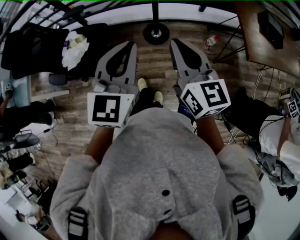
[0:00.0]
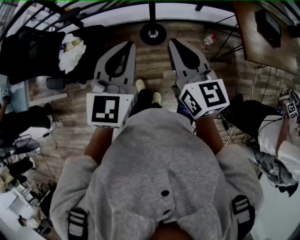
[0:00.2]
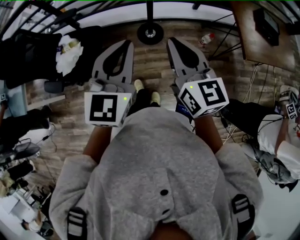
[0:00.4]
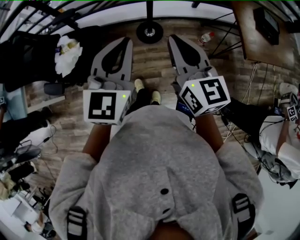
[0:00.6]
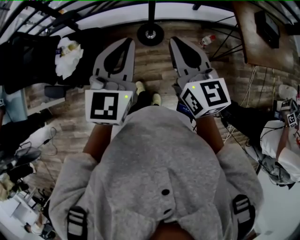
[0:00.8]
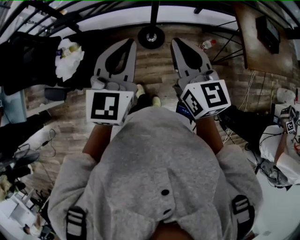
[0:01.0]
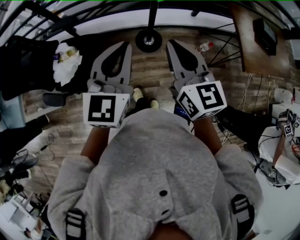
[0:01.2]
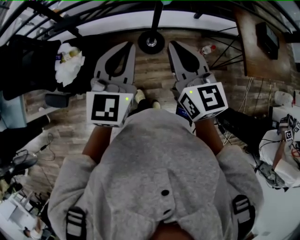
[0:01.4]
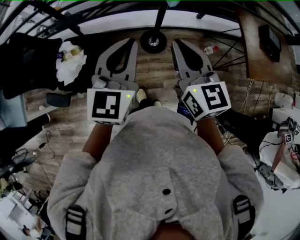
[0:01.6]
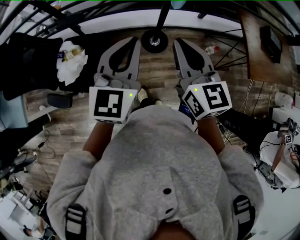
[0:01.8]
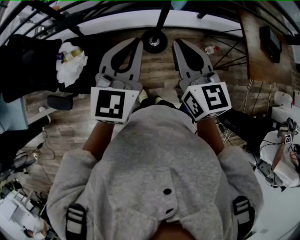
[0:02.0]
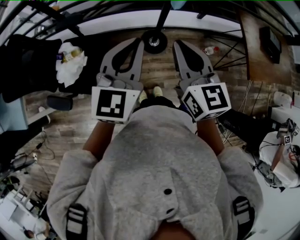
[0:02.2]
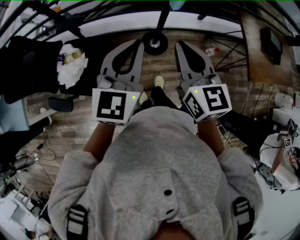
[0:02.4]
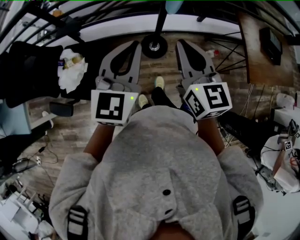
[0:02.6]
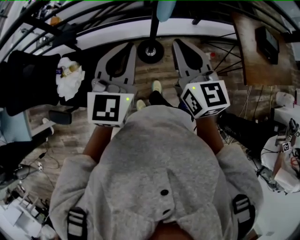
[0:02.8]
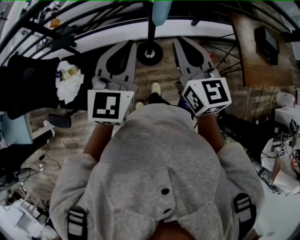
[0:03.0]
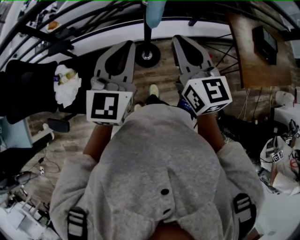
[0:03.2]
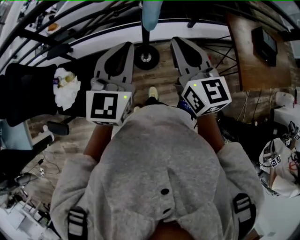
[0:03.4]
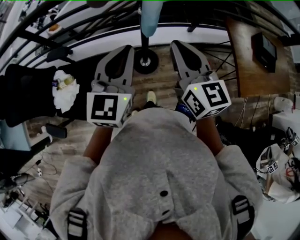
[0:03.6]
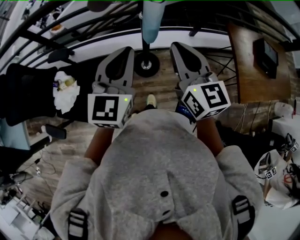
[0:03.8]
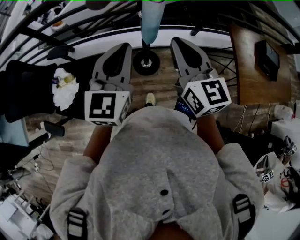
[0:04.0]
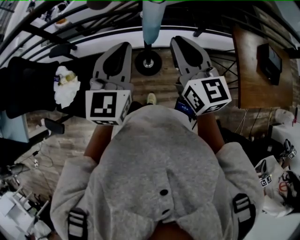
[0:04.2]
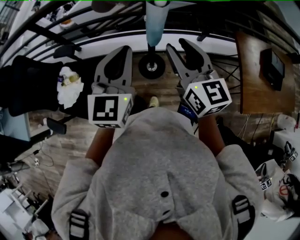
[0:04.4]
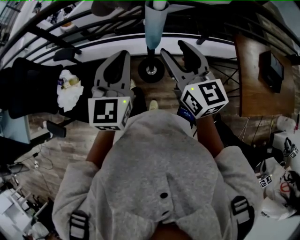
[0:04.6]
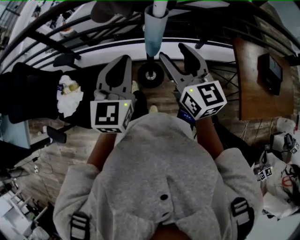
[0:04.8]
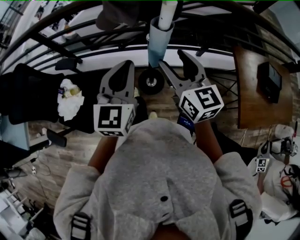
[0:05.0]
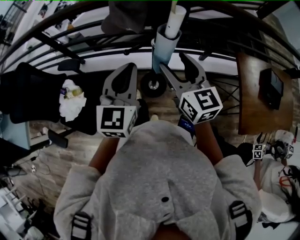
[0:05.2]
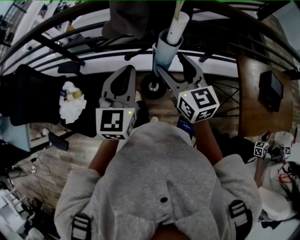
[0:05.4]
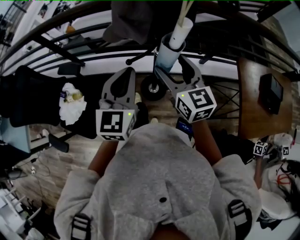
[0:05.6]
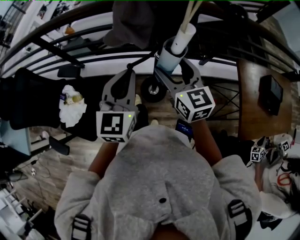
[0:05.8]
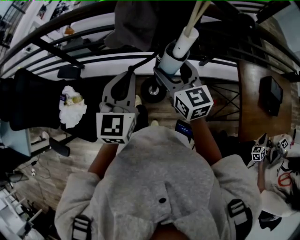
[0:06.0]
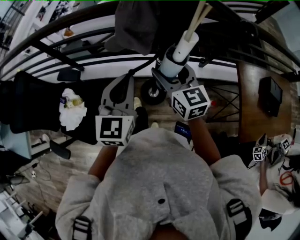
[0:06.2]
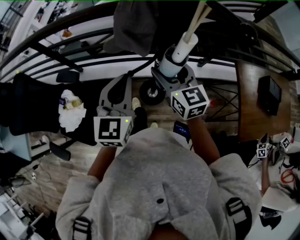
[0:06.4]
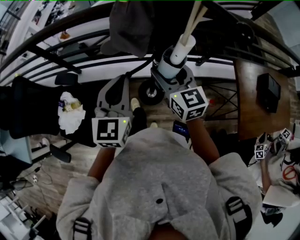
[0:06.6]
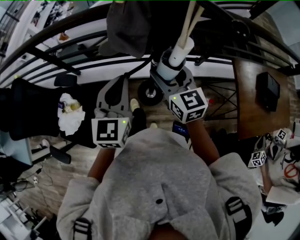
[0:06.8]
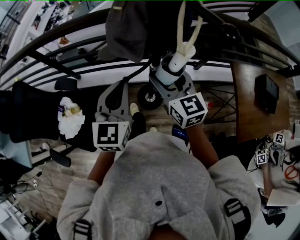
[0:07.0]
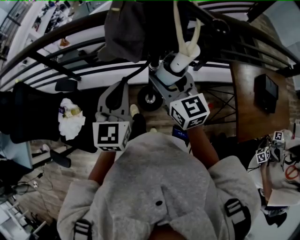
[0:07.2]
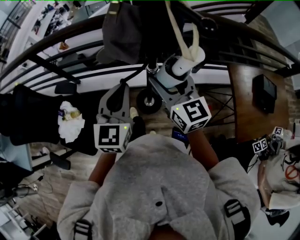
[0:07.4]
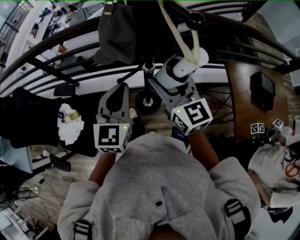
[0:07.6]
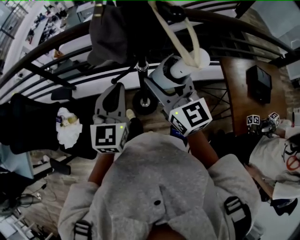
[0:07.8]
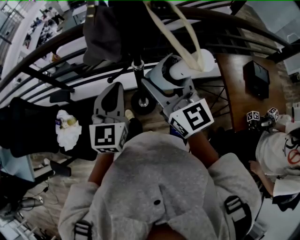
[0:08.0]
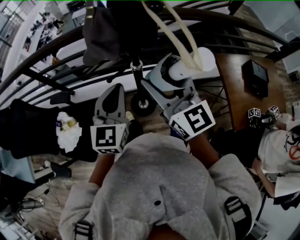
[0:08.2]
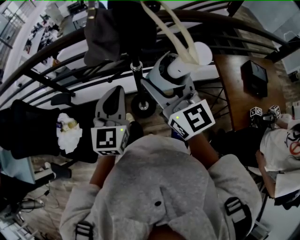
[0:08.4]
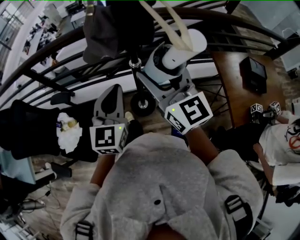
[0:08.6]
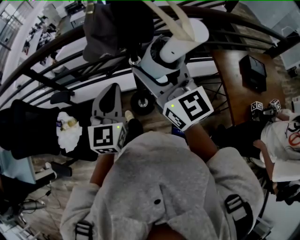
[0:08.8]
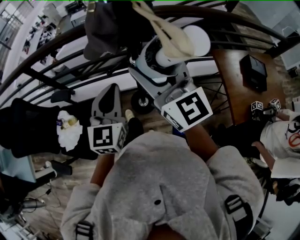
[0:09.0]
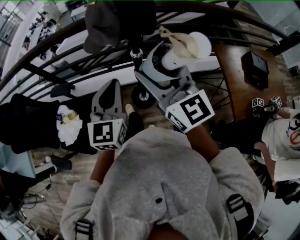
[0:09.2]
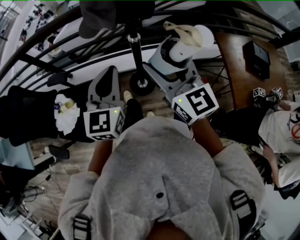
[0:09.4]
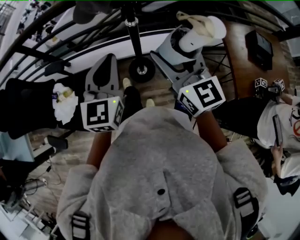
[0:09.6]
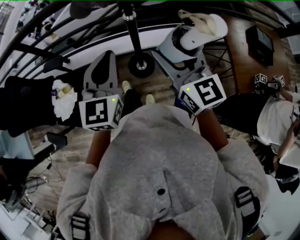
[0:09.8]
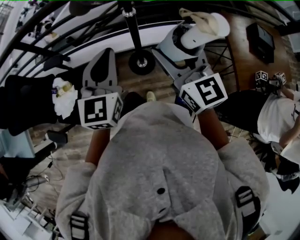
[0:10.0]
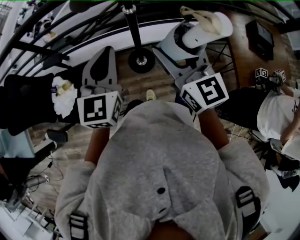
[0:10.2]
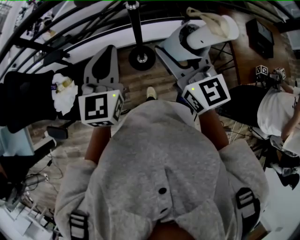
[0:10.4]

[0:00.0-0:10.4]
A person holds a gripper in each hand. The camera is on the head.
0:00.0 to 0:01.4: Both grippers travel together forward and to the left, roughly 20 cm.
0:01.4 to 0:03.0: The left gripper heads forward, covering roughly 10 cm. Meanwhile the right gripper travels forward and to the right by some 15 cm.
0:03.0 to 0:04.4: The right gripper is displaced forward and to the right by some 10 cm, and opens, while the left gripper travels forward by approximately 10 cm.
0:04.4 to 0:06.0: Both grippers move forward, some 15 cm. The right gripper opens its fingers.
0:06.0 to 0:07.4: The right gripper changes place by roughly 5 cm.
0:07.4 to 0:09.0: The right gripper heads upward and backward, covering approximately 15 cm. Meanwhile the left gripper goes about 5 cm backward.
0:09.0 to 0:10.4: The left gripper shifts approximately 5 cm backward, while the right gripper goes some 15 cm downward and backward.

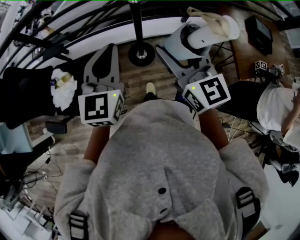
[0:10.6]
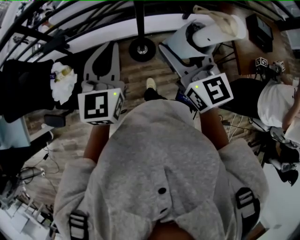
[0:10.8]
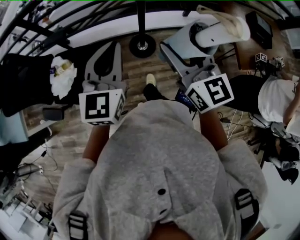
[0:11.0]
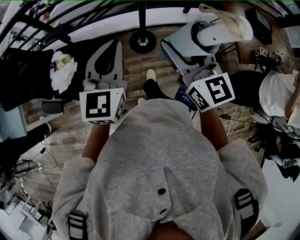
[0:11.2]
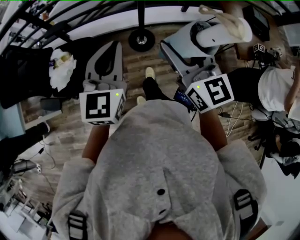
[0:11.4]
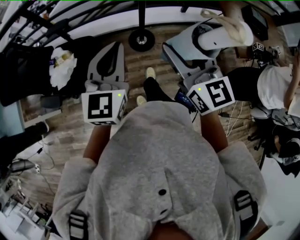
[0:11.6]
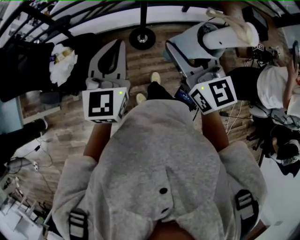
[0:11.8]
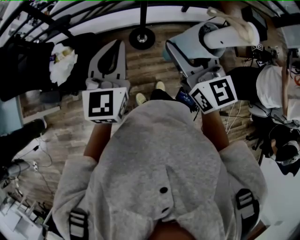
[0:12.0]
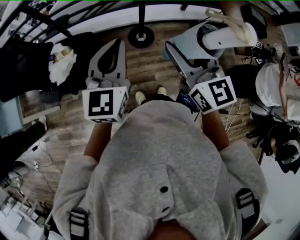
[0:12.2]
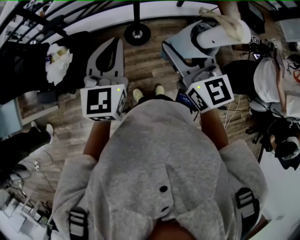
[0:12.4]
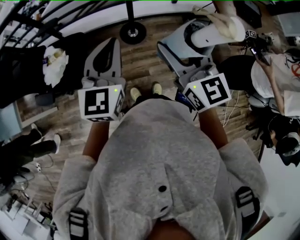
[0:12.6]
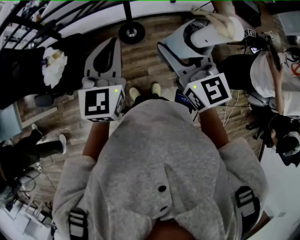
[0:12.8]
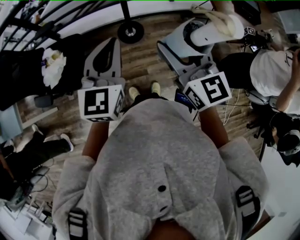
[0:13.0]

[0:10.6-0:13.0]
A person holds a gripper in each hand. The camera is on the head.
0:10.6 to 0:11.8: The two grippers go some 20 cm backward.
0:11.8 to 0:13.0: The grippers both shift to the right by approximately 10 cm.

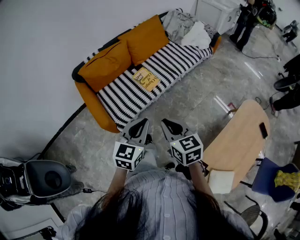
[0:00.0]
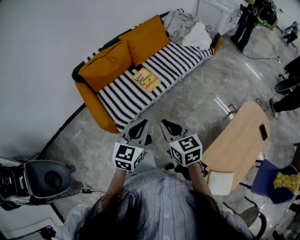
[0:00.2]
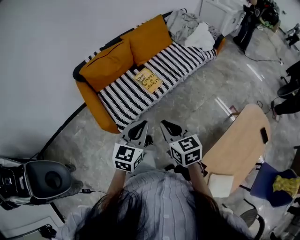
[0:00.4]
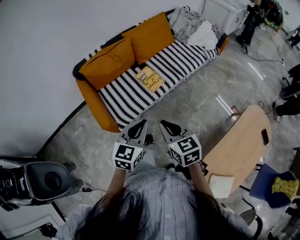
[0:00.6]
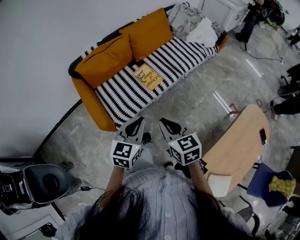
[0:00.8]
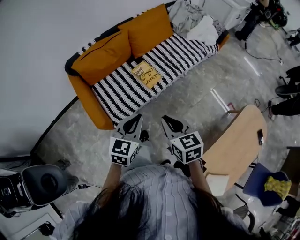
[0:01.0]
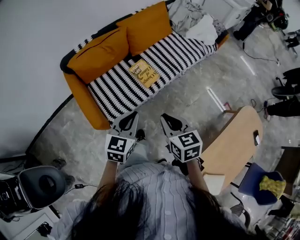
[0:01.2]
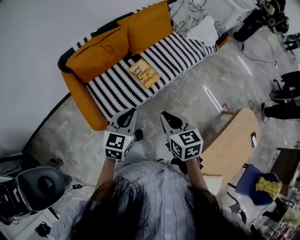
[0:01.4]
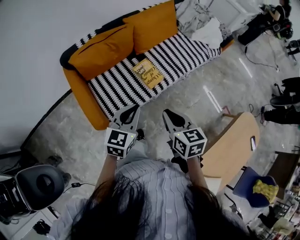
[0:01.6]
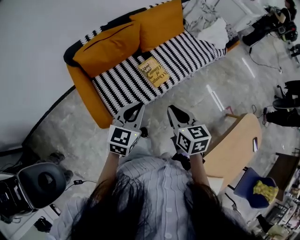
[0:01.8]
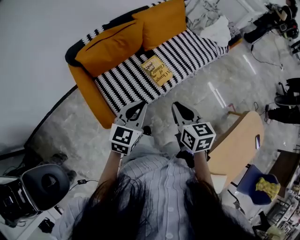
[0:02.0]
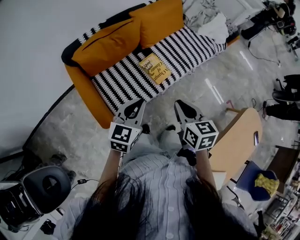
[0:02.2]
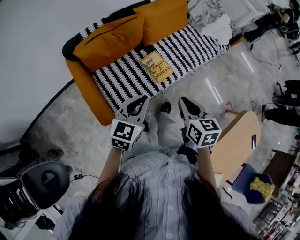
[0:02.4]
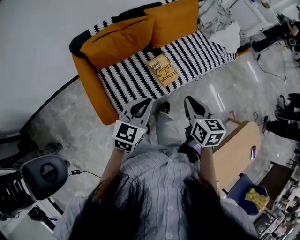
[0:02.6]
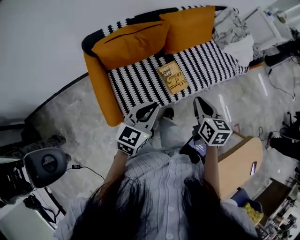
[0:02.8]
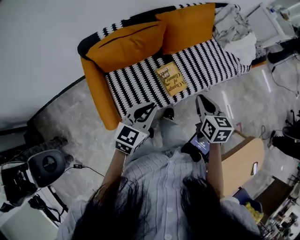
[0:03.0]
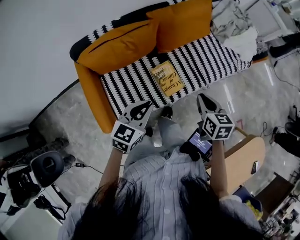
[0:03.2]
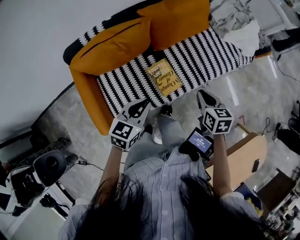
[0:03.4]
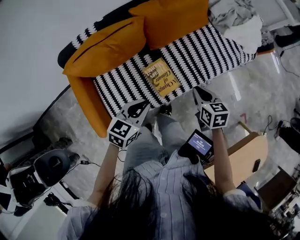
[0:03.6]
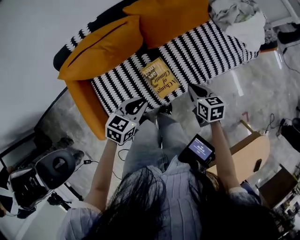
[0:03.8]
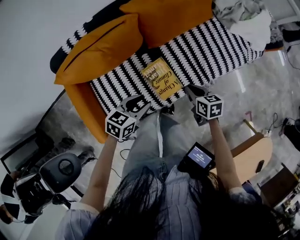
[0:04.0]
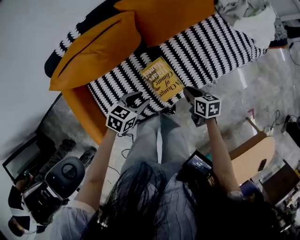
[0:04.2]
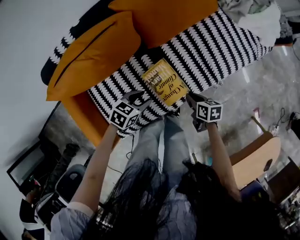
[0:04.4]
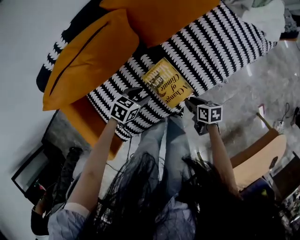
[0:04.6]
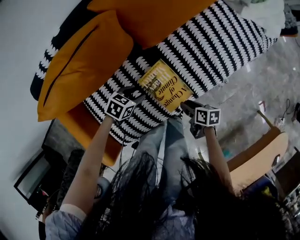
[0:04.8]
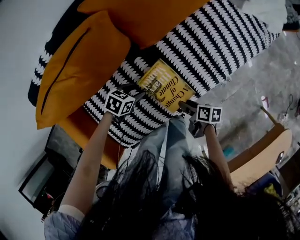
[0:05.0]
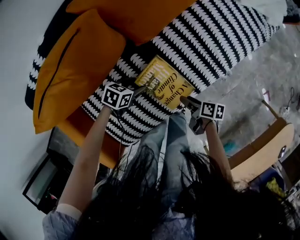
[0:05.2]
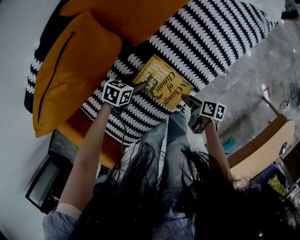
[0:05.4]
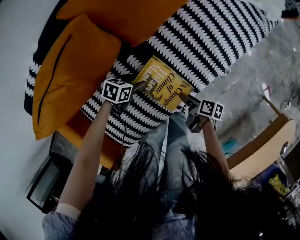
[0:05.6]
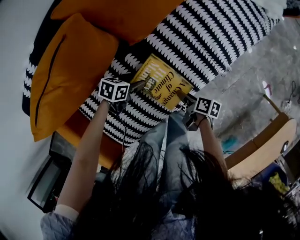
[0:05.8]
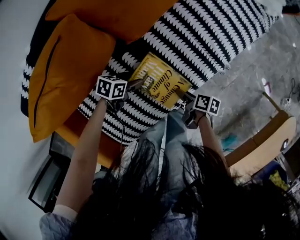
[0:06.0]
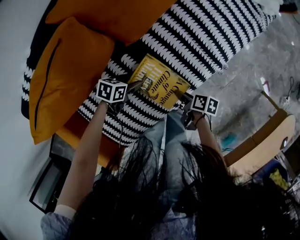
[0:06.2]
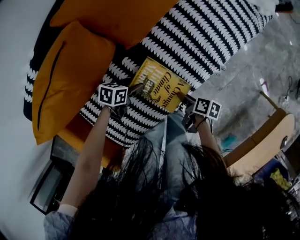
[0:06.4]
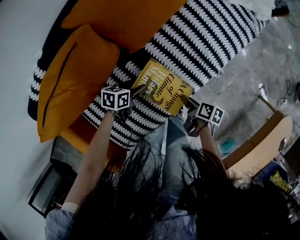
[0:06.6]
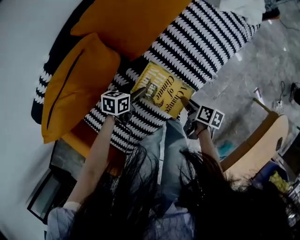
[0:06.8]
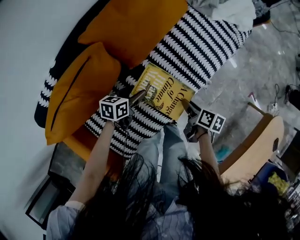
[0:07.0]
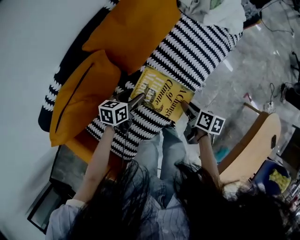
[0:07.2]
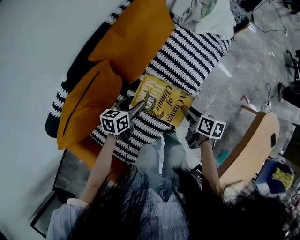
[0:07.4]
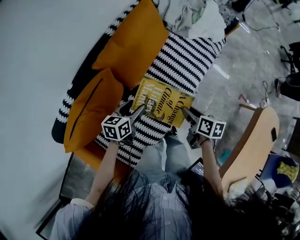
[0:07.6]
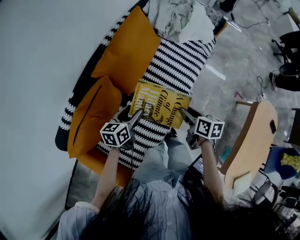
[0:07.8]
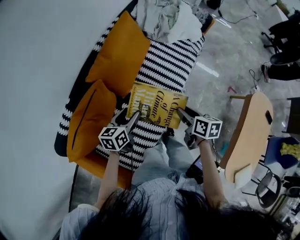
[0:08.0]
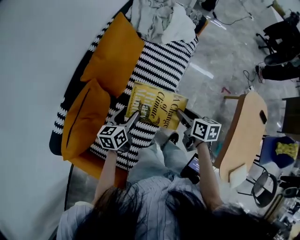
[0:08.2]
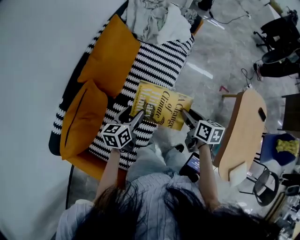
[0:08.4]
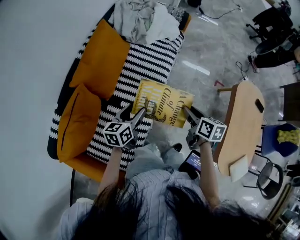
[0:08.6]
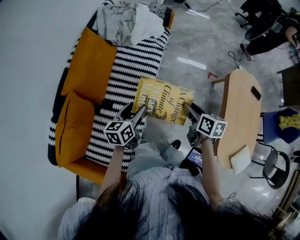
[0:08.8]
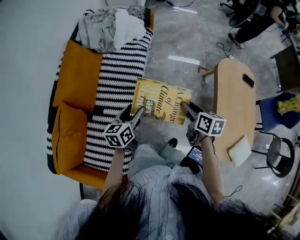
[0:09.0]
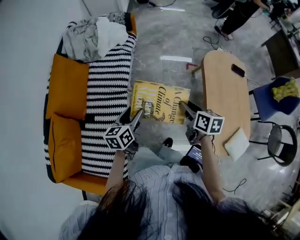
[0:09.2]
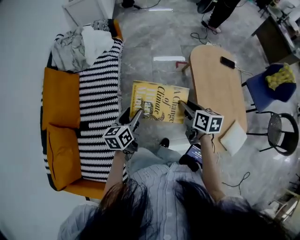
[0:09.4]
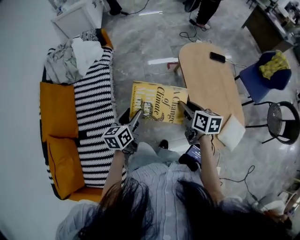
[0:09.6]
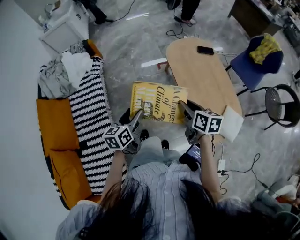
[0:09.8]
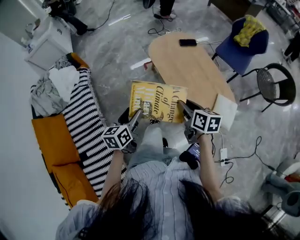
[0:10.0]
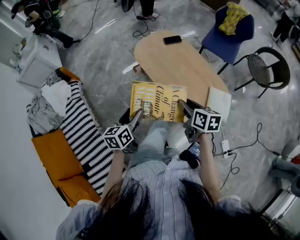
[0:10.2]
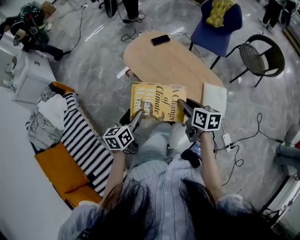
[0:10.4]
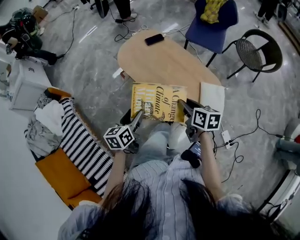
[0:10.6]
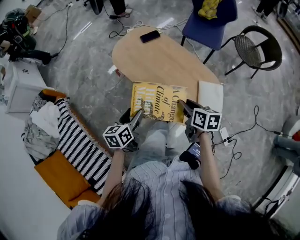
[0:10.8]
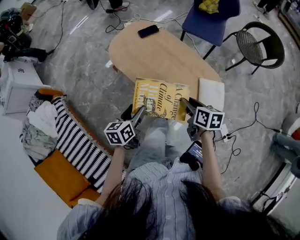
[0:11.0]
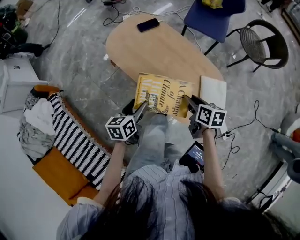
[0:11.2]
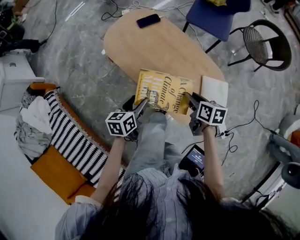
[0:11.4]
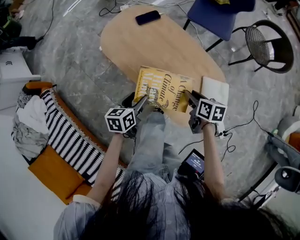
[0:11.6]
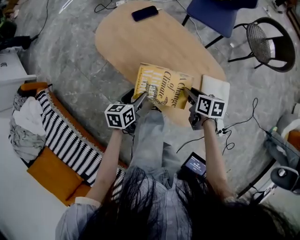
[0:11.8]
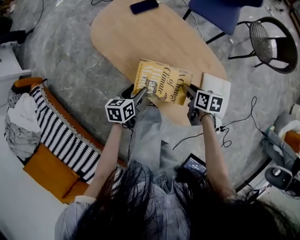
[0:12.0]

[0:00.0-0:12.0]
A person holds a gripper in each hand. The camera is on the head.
0:00.0 to 0:01.6: The left gripper moves forward and to the left, some 25 cm, while the right gripper shifts roughly 20 cm forward.
0:01.6 to 0:03.0: The left gripper travels forward by some 10 cm. Meanwhile the right gripper goes some 20 cm forward.
0:03.0 to 0:04.4: Both grippers move downward, some 35 cm. The right gripper rotates approximately 40 degrees, while the left gripper swivels some 40 degrees, and opens up.
0:04.4 to 0:06.0: The left gripper moves downward, roughly 15 cm, and opens its fingers. The right gripper moves downward, approximately 10 cm, rotates approximately 30 degrees, and opens up.
0:06.0 to 0:07.6: Both grippers travel together upward, about 15 cm. The left gripper rotates about 30 degrees. The right gripper changes its angle by approximately 30 degrees, and closes.
0:07.6 to 0:09.0: The left gripper shifts roughly 35 cm to the right and upward. The right gripper moves to the right, upward and backward, some 35 cm, and swivels some 30 degrees.
0:09.0 to 0:10.4: The two grippers travel together, about 40 cm. The left gripper turns by approximately 50 degrees, while the right gripper turns by approximately 40 degrees.
0:10.4 to 0:12.0: Both grippers move downward and forward, some 30 cm. The right gripper changes its angle by about 20 degrees; the left gripper swivels approximately 20 degrees.
